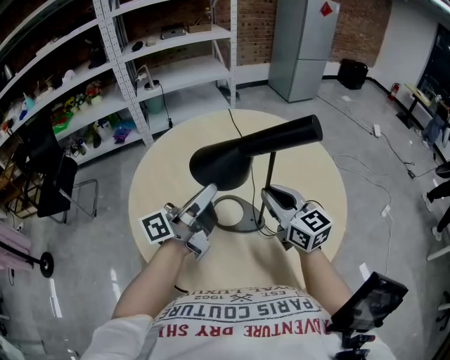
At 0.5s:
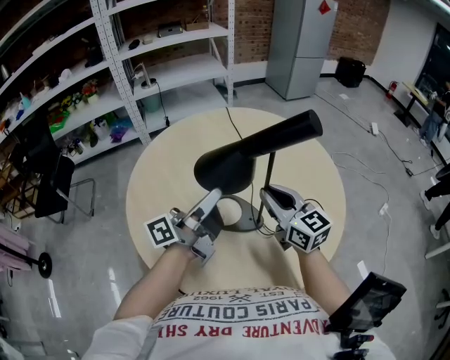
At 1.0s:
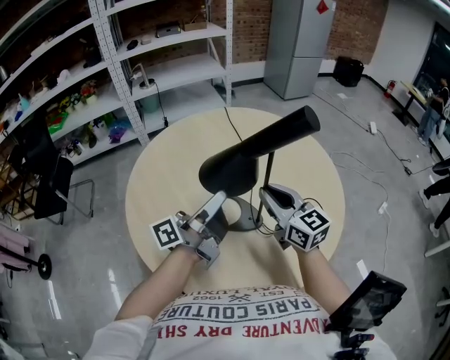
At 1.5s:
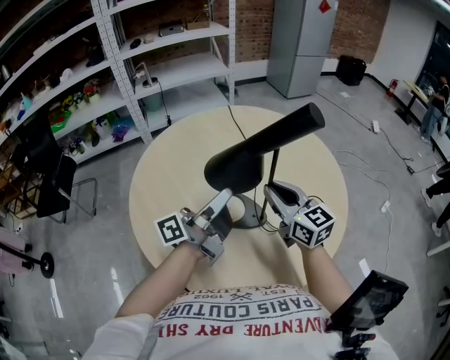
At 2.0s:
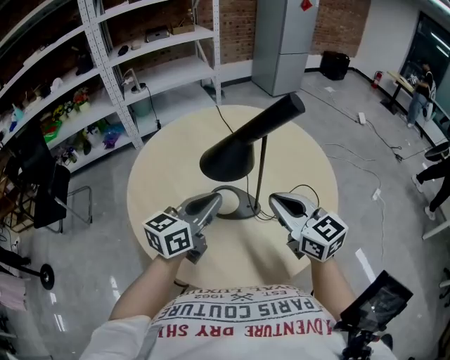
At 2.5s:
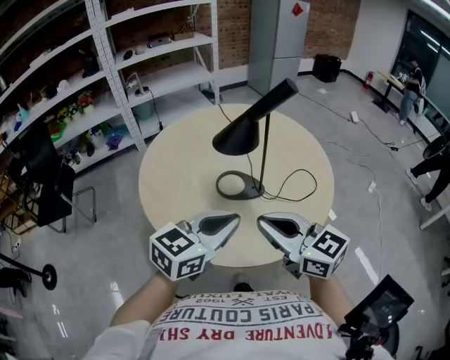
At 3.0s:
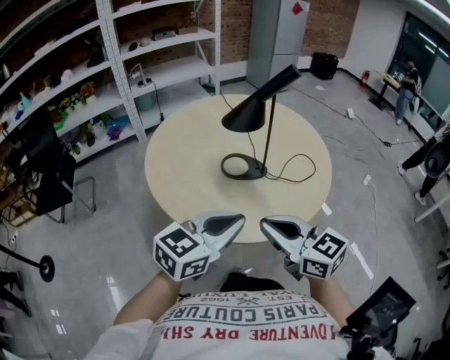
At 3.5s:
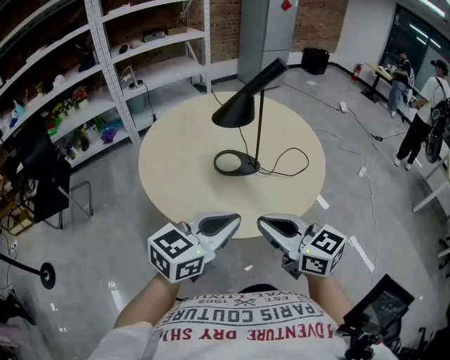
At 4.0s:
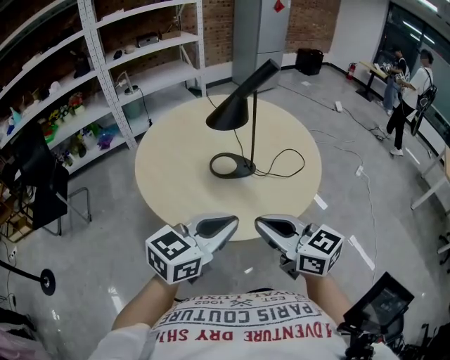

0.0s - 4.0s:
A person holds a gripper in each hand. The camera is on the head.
0.0s - 2.0s: The right gripper is displaced backward by roughly 10 cm. Meanwhile the left gripper moves about 5 cm, and rotates about 50 degrees.
2.0s - 4.0s: The two grippers go approximately 25 cm backward. The left gripper changes its angle by about 20 degrees.

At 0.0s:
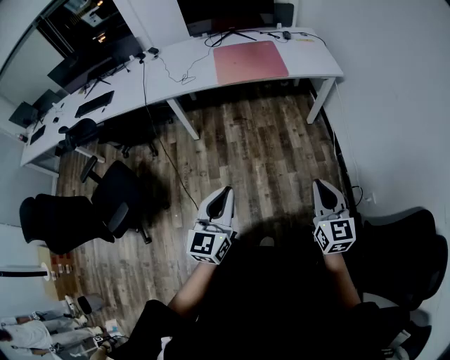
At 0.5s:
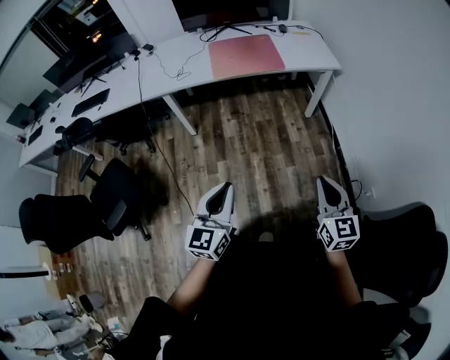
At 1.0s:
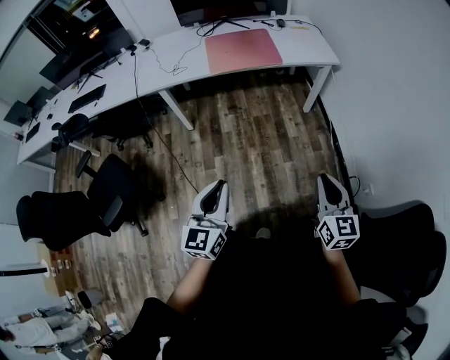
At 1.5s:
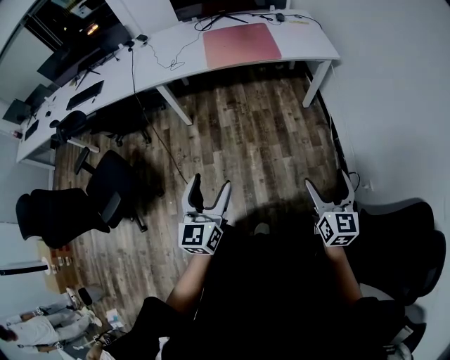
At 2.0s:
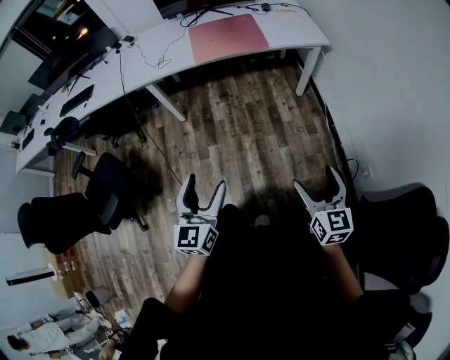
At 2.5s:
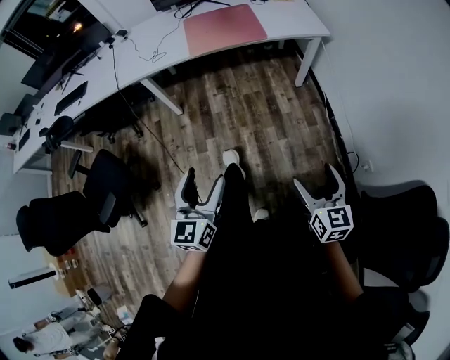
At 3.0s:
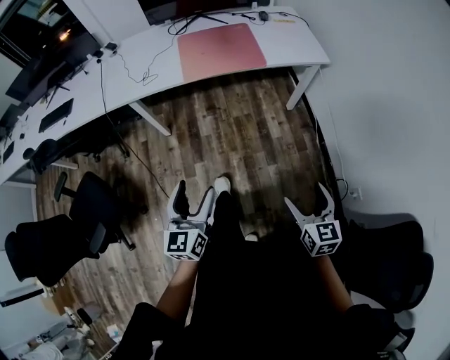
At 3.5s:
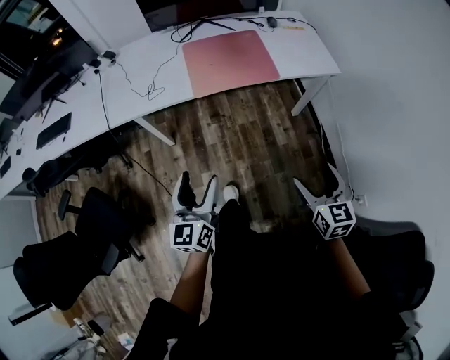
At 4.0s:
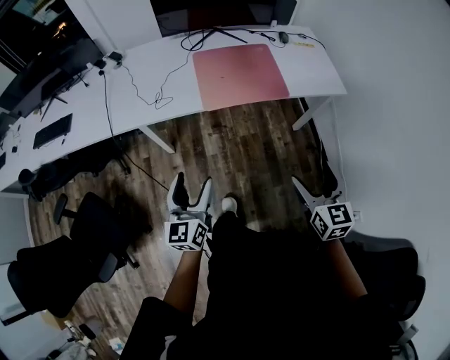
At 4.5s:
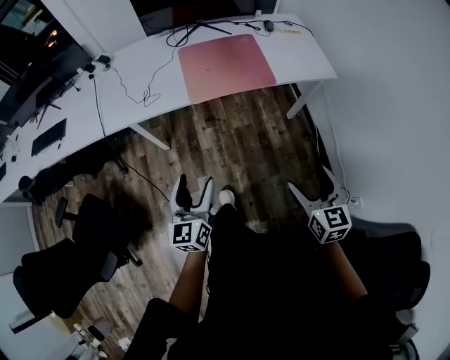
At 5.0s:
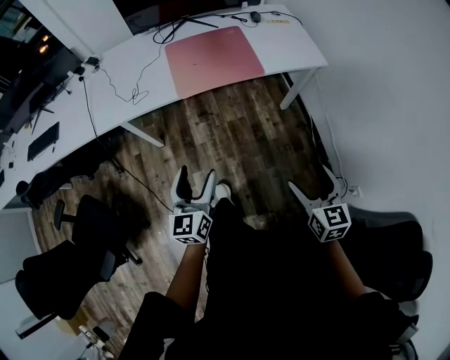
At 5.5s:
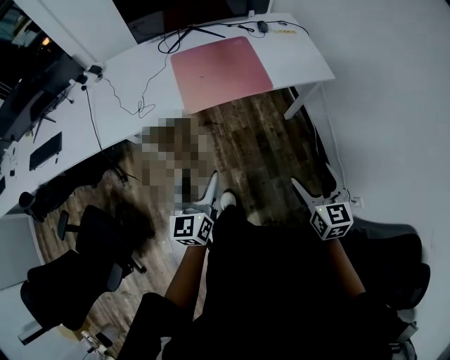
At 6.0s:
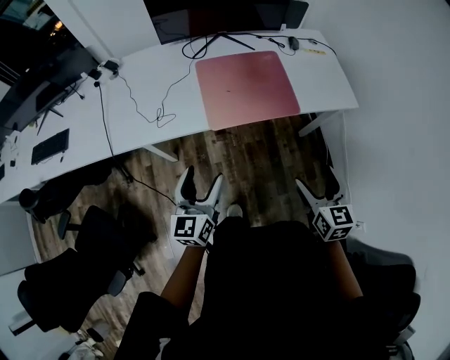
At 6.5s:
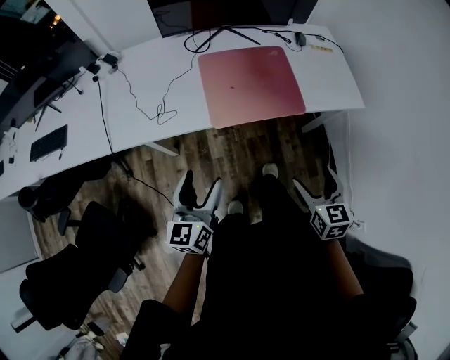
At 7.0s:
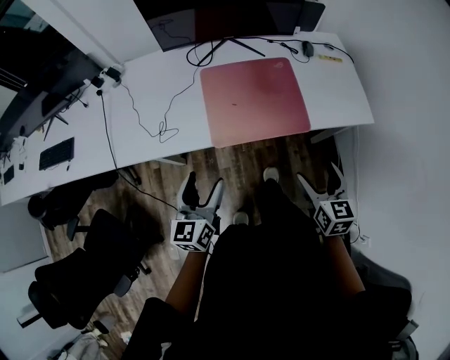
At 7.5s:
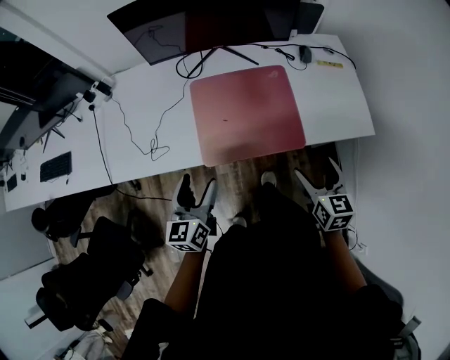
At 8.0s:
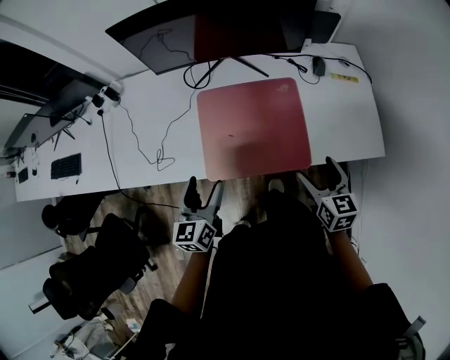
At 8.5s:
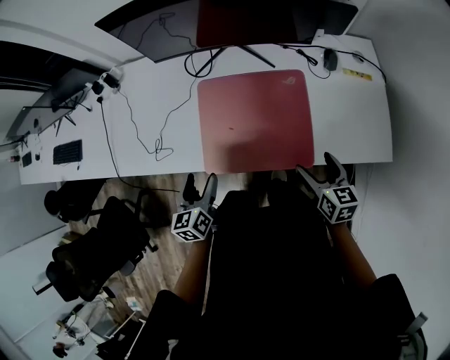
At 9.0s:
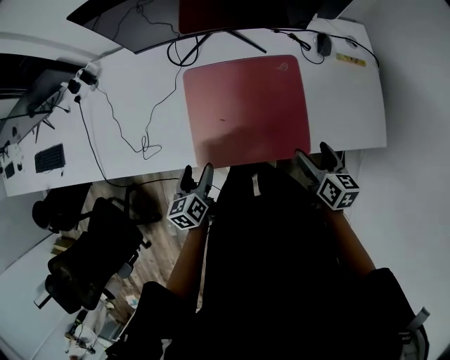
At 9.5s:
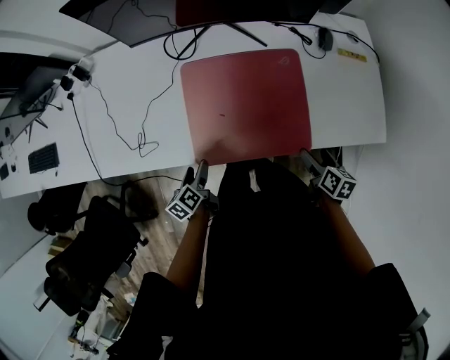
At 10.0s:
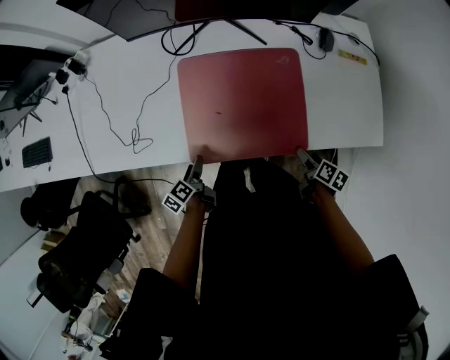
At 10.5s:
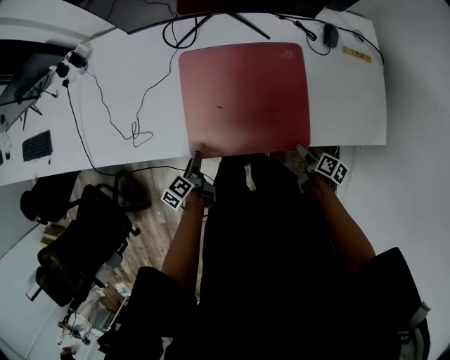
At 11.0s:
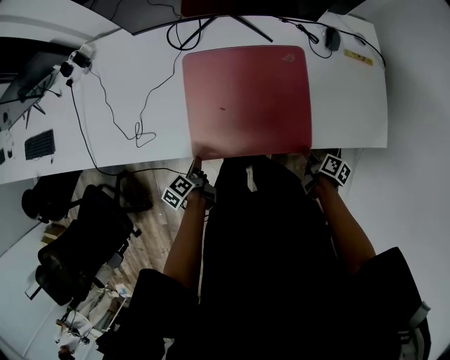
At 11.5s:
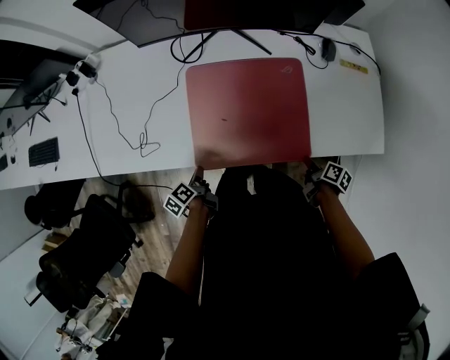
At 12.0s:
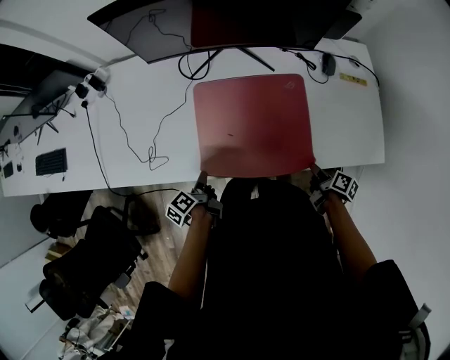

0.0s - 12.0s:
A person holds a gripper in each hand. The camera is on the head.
0.0s - 2.0s: The left gripper opens; the right gripper heads to the right and downward, covering approximately 10 cm, and opens.
2.0s - 4.0s: The left gripper moves forward and to the left, about 40 cm; the right gripper heads forward, covering approximately 35 cm.
4.0s - 6.0s: Both grippers travel together forward, roughly 15 cm.
6.0s - 8.0s: Both grippers travel together forward, roughly 30 cm.
8.0s - 10.0s: The two grippers go some 25 cm downward. The left gripper rotates around the line of its fingers by roughly 50 degrees, counterclockwise from behind, while the right gripper twists approximately 40 degrees clockwise, seen from behind.
10.0s - 12.0s: The right gripper closes. Meanwhile the left gripper heads upward, covering roughly 5 cm, and closes.

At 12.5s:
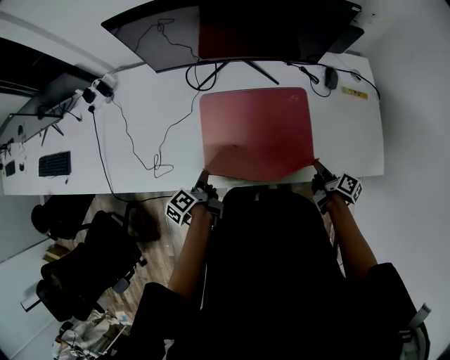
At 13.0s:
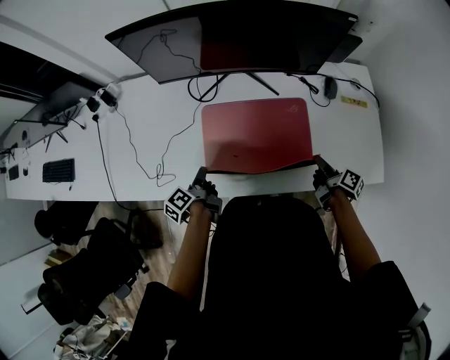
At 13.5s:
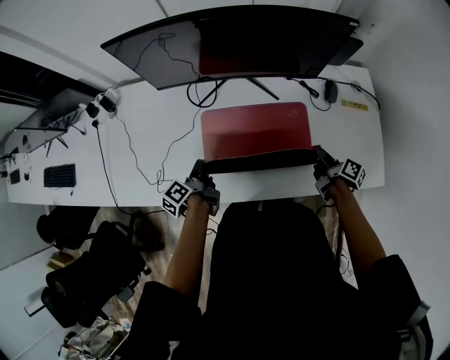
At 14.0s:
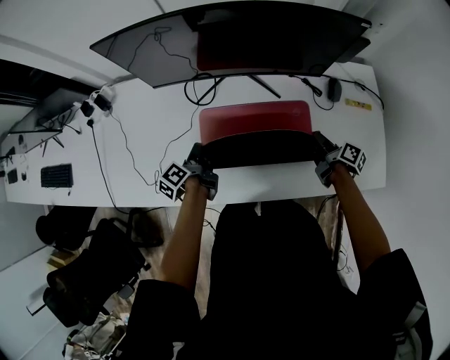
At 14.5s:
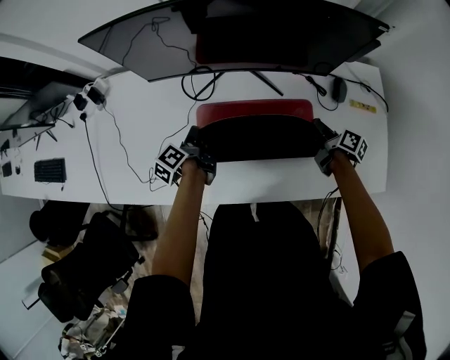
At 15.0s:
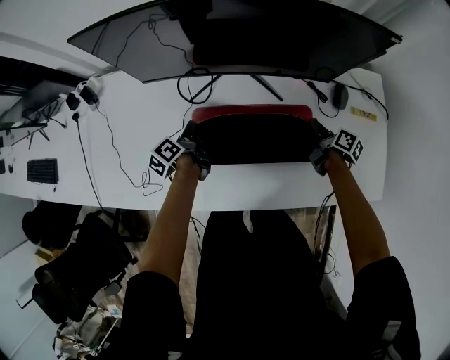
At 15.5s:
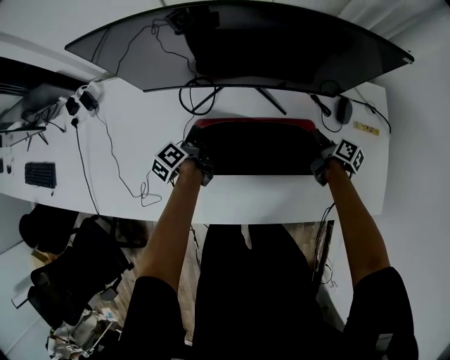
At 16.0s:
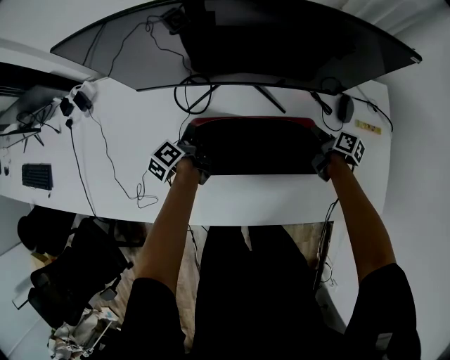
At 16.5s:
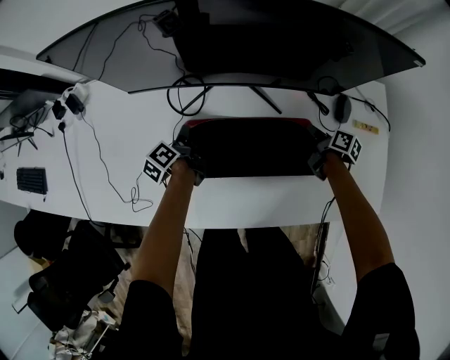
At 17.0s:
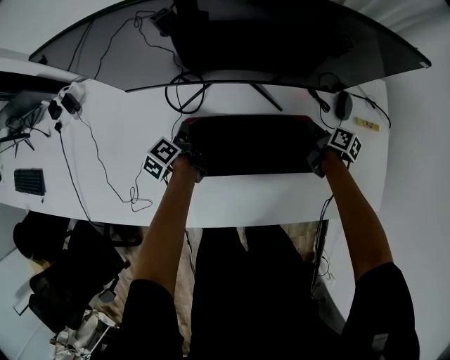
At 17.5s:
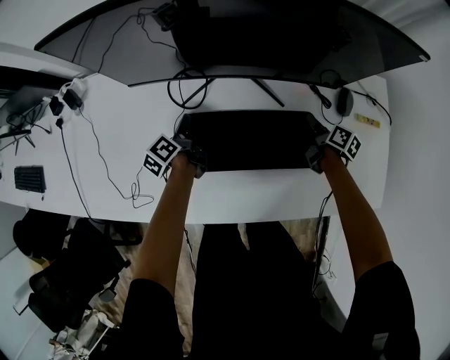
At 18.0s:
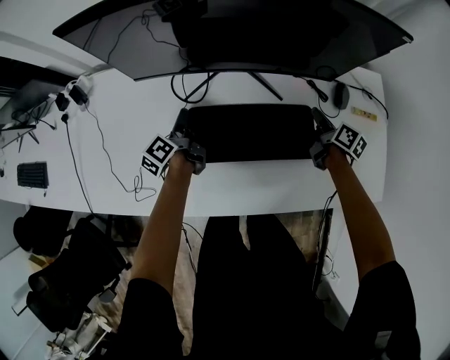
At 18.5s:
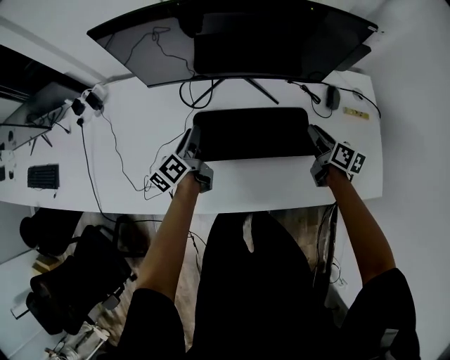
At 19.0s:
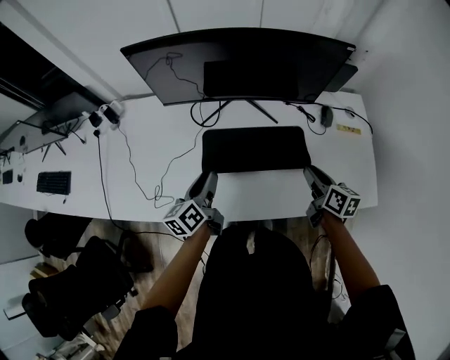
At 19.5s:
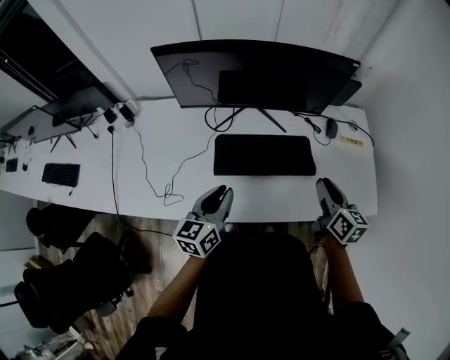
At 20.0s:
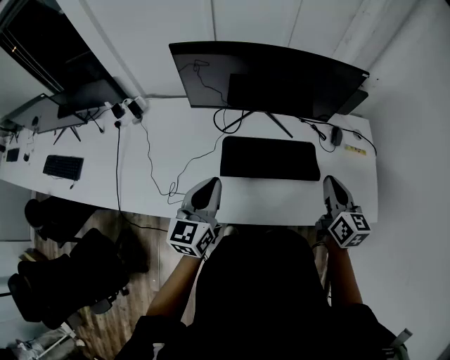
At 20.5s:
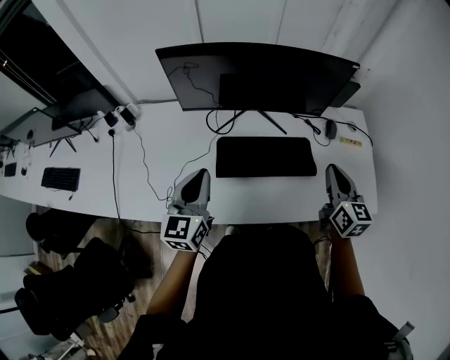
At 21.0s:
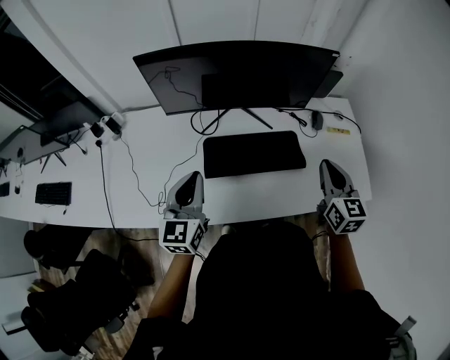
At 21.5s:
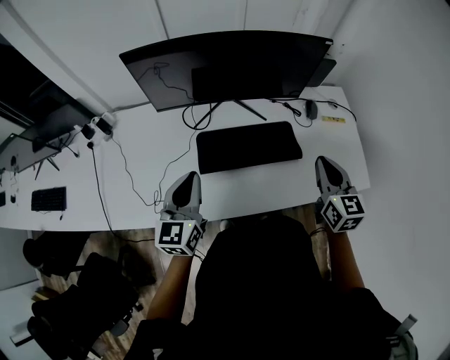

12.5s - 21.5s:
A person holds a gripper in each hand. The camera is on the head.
12.5s - 14.5s: The two grippers go roughly 20 cm forward.
14.5s - 17.0s: Both grippers travel together downward and forward, roughly 10 cm.
17.0s - 19.5s: Both grippers travel together upward and backward, approximately 40 cm. The right gripper rotates roughly 40 degrees; the left gripper rolls clockwise, seen from behind, by some 50 degrees.
19.5s - 21.5s: The right gripper goes about 5 cm upward, and changes its angle by about 20 degrees; the left gripper is displaced to the left by approximately 5 cm.

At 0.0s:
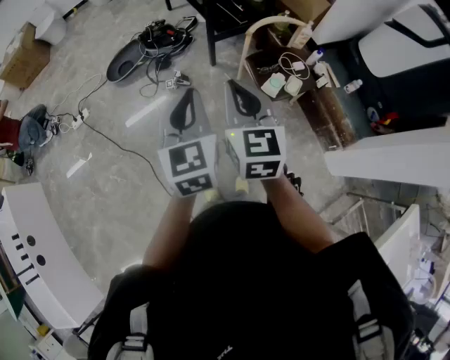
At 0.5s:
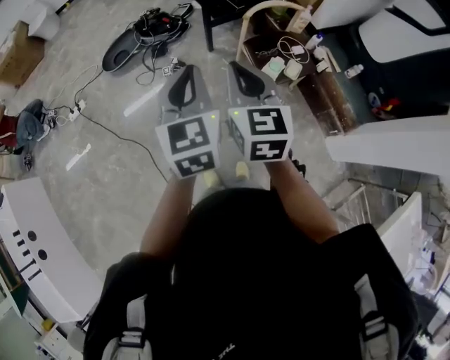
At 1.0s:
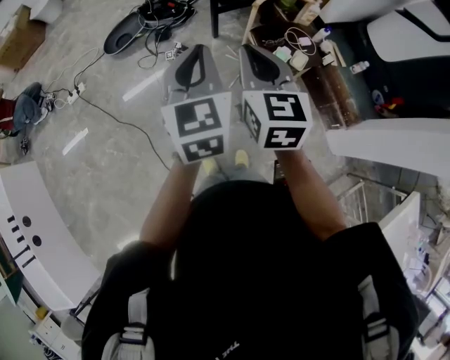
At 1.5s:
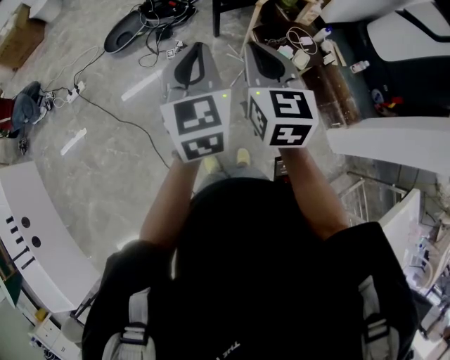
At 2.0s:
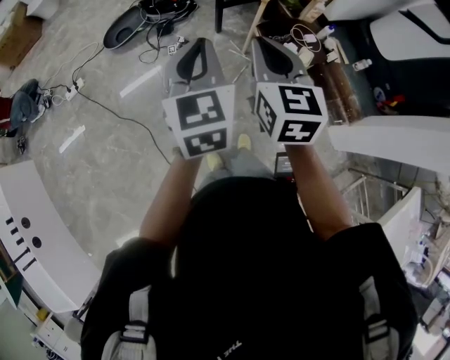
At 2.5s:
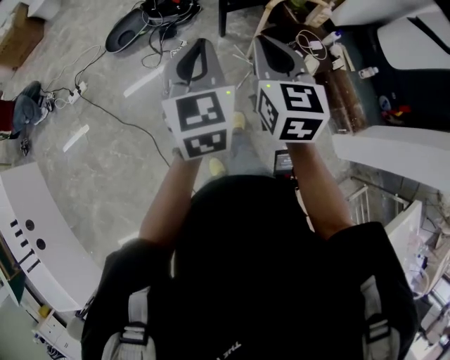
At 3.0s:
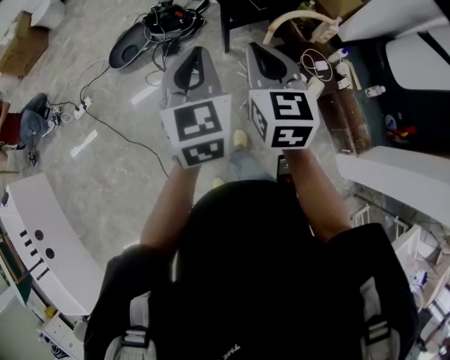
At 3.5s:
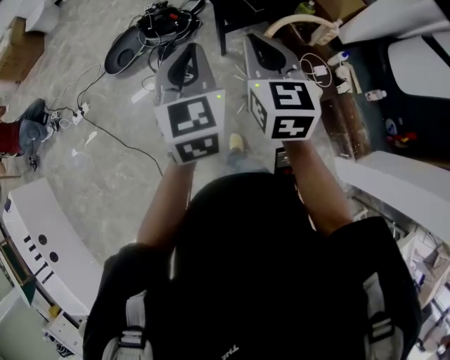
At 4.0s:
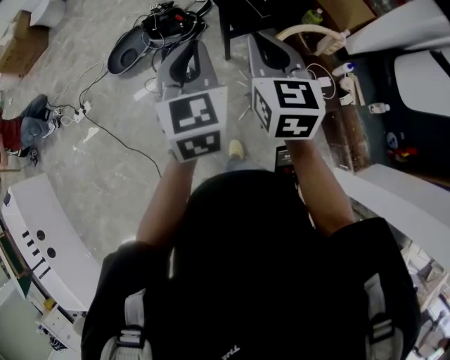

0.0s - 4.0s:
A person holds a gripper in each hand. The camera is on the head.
0.0s - 2.0s: The left gripper travels to the left by approximately 5 cm.
2.0s - 4.0s: The two grippers go approximately 35 cm forward.
